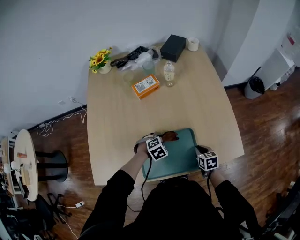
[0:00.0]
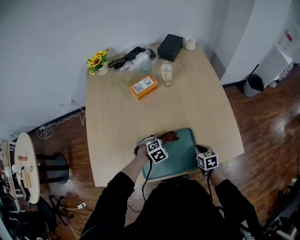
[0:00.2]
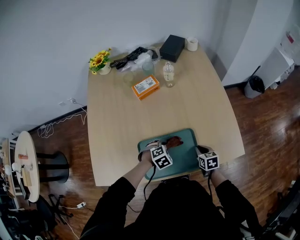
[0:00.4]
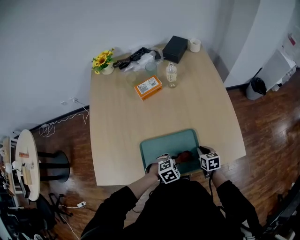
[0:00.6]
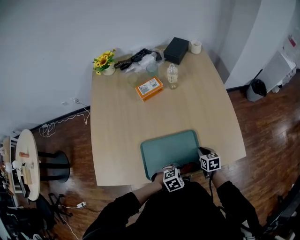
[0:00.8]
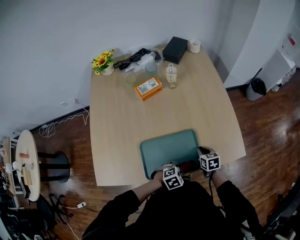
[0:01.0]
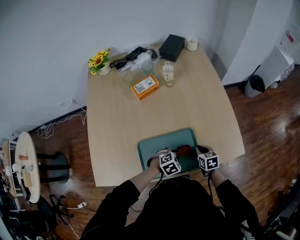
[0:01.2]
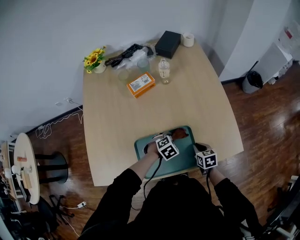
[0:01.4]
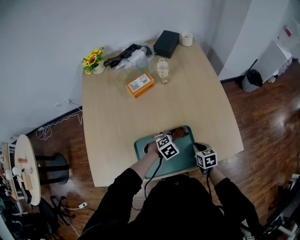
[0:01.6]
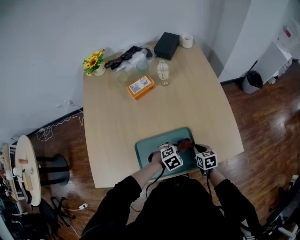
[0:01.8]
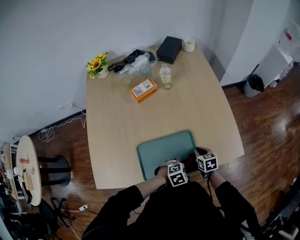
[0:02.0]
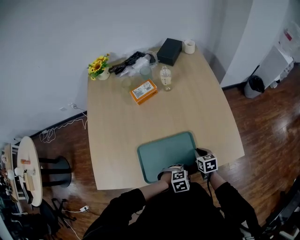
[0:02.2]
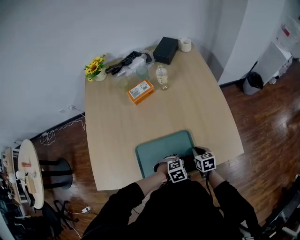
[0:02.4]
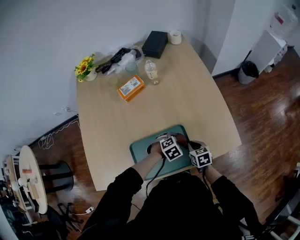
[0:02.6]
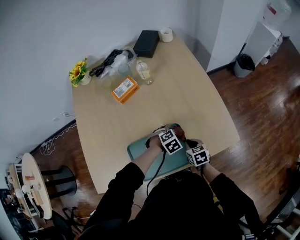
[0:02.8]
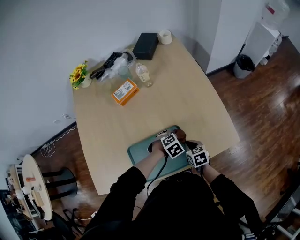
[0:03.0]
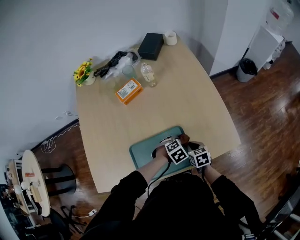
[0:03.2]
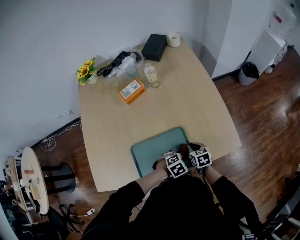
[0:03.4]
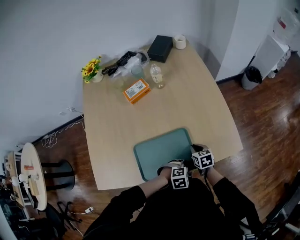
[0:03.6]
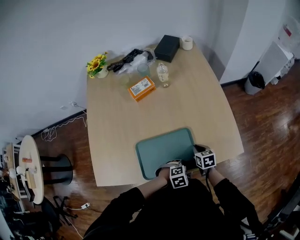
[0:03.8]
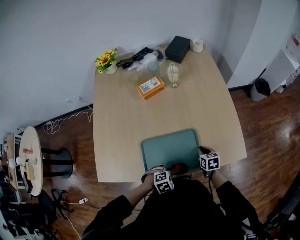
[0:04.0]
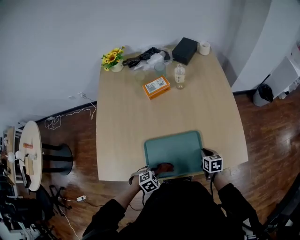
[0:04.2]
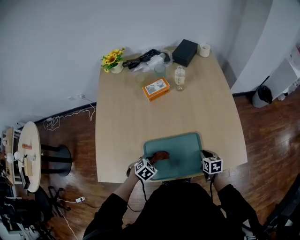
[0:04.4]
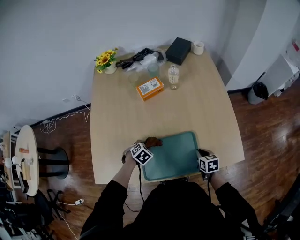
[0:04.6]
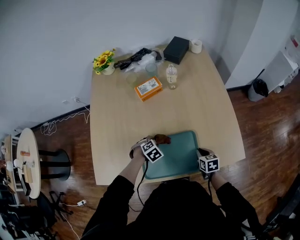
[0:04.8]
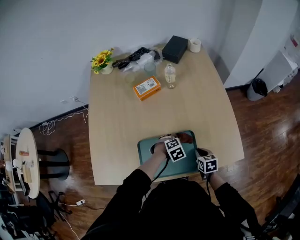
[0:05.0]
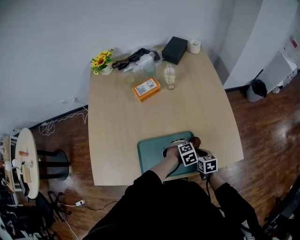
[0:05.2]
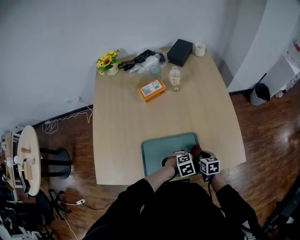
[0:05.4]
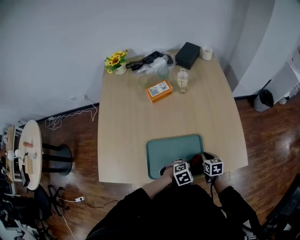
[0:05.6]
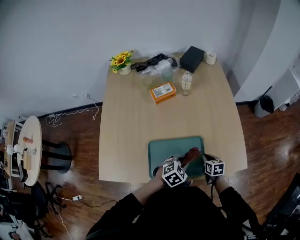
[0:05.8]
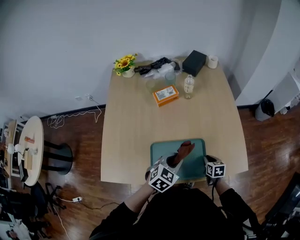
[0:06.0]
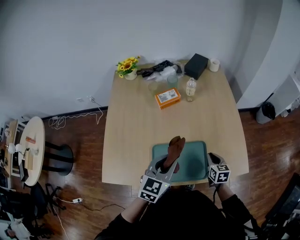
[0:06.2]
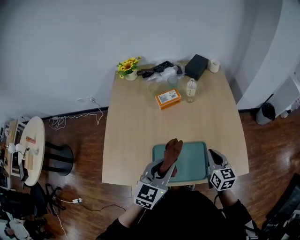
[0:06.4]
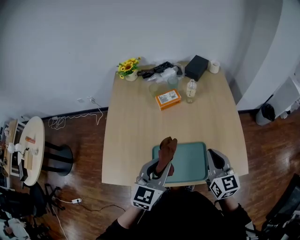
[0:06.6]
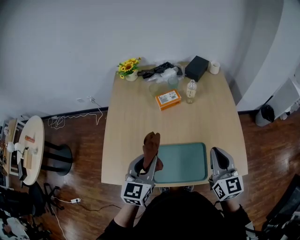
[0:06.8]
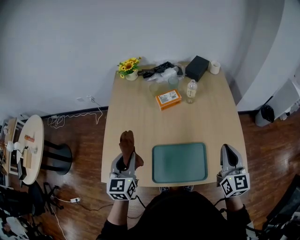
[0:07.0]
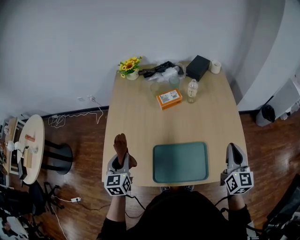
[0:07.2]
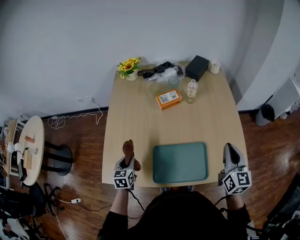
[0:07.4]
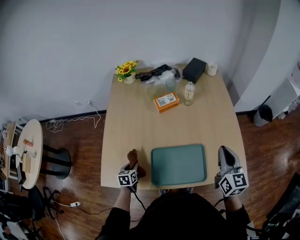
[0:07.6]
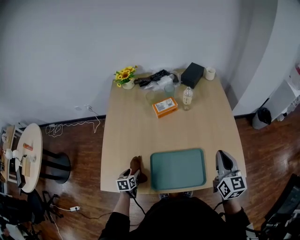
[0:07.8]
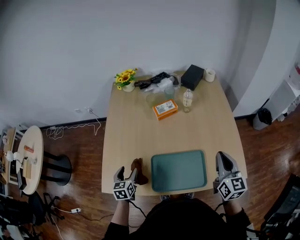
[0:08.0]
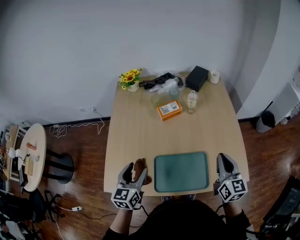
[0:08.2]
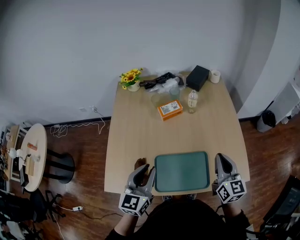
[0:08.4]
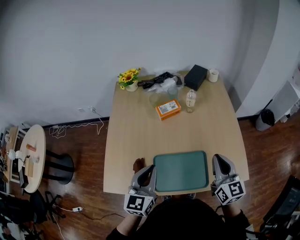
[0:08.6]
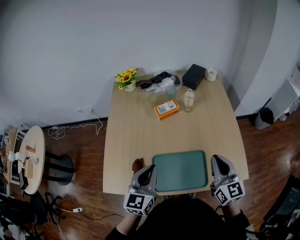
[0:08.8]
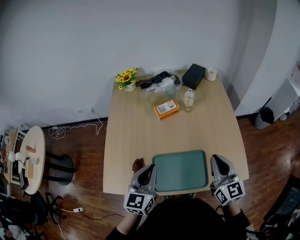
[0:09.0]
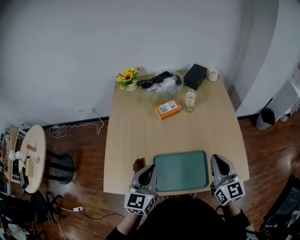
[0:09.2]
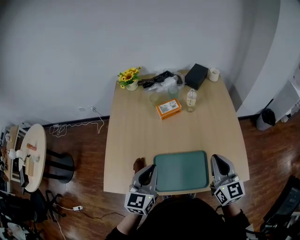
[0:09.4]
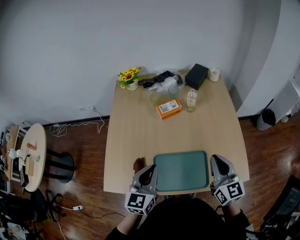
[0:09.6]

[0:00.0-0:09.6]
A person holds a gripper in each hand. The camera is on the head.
0:00.0 to 0:01.6: The left gripper heads to the right, covering approximately 5 cm, and goes backward and returns, approximately 15 cm each way.
0:01.6 to 0:03.2: The left gripper goes forward and backward, some 20 cm each way, reversing 2 times.
0:03.2 to 0:04.8: The left gripper ends up about 20 cm from where it was.
0:04.8 to 0:06.4: Both grippers travel together upward, some 25 cm. The left gripper tips its fingers upward by approximately 50 degrees, while the right gripper turns by some 30 degrees.
0:06.4 to 0:08.0: The right gripper travels upward by some 10 cm; the left gripper shifts approximately 30 cm to the left and downward, changes its angle by roughly 40 degrees, and opens its fingers.
0:08.0 to 0:09.6: The left gripper is displaced upward and to the right by some 25 cm, turns by approximately 30 degrees, and closes its fingers. The right gripper shifts by roughly 5 cm.

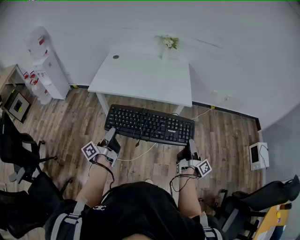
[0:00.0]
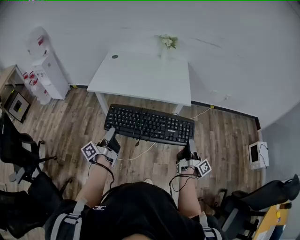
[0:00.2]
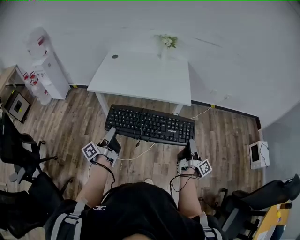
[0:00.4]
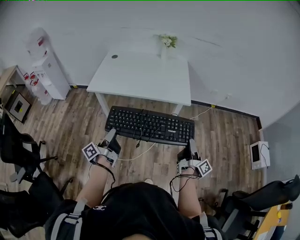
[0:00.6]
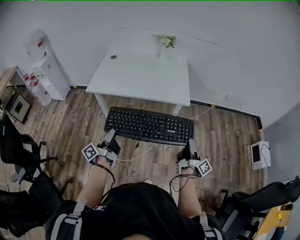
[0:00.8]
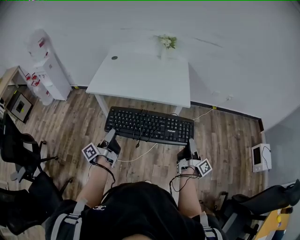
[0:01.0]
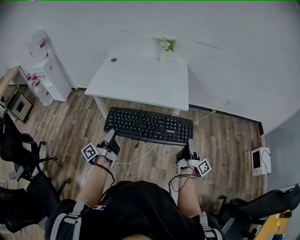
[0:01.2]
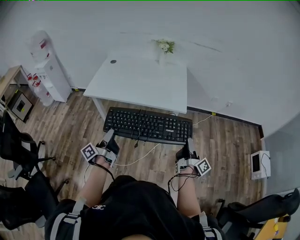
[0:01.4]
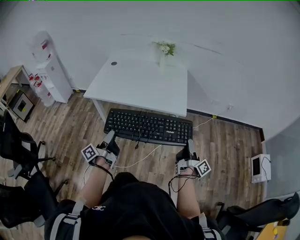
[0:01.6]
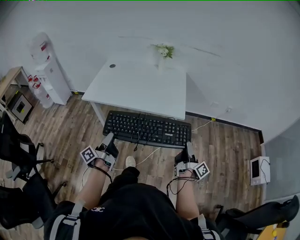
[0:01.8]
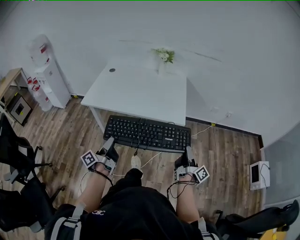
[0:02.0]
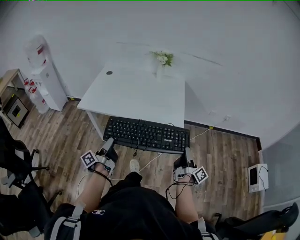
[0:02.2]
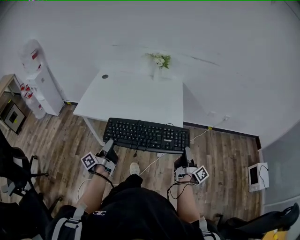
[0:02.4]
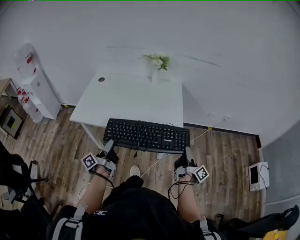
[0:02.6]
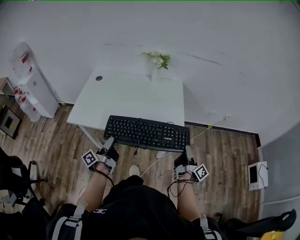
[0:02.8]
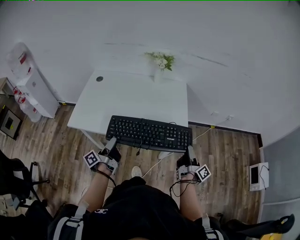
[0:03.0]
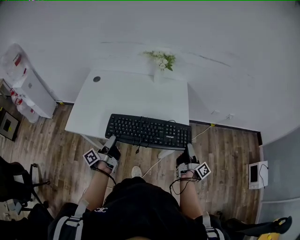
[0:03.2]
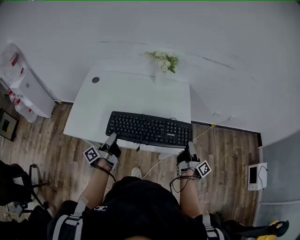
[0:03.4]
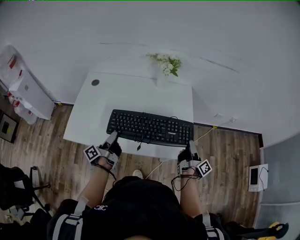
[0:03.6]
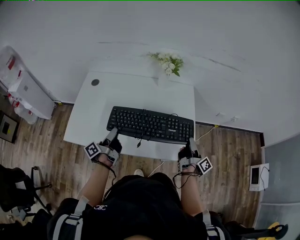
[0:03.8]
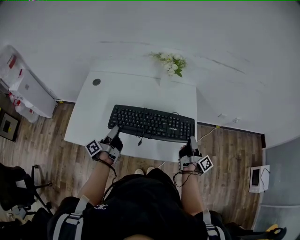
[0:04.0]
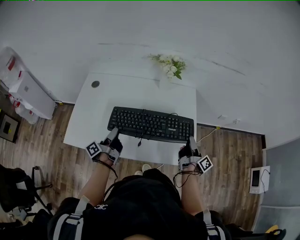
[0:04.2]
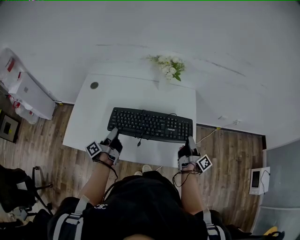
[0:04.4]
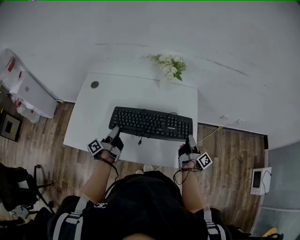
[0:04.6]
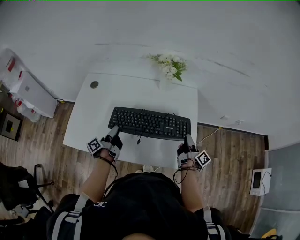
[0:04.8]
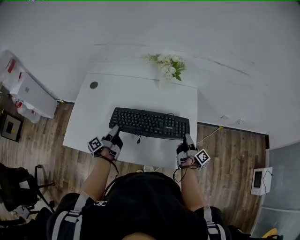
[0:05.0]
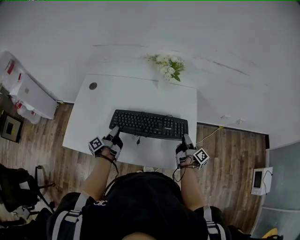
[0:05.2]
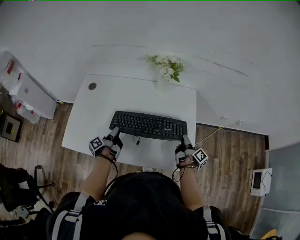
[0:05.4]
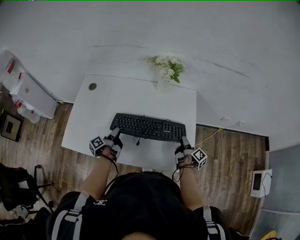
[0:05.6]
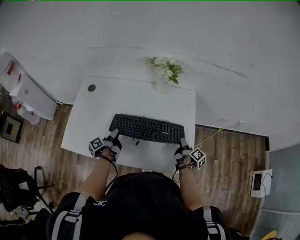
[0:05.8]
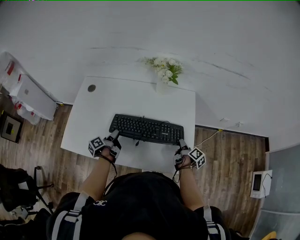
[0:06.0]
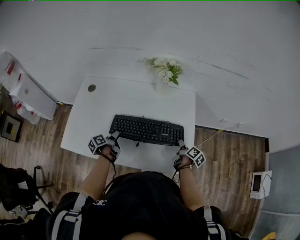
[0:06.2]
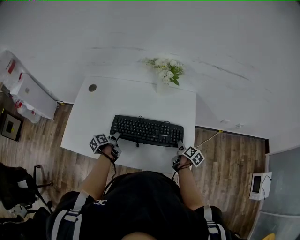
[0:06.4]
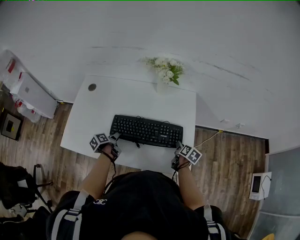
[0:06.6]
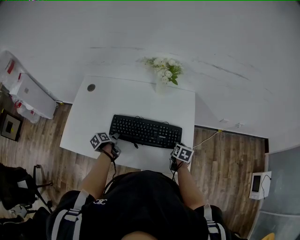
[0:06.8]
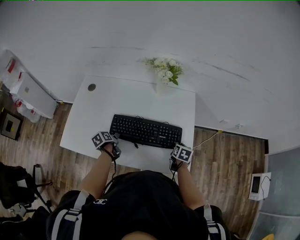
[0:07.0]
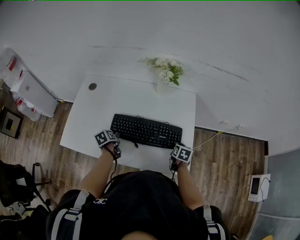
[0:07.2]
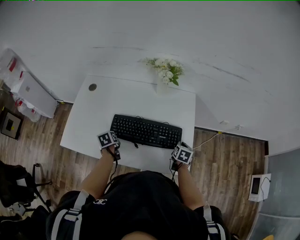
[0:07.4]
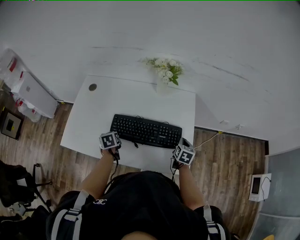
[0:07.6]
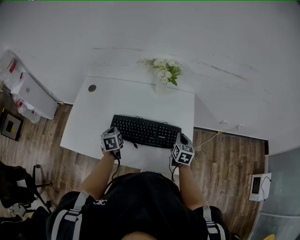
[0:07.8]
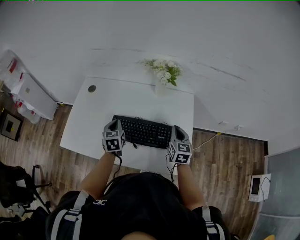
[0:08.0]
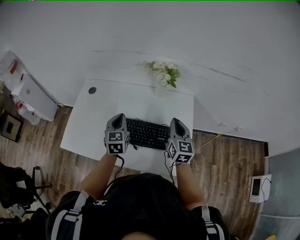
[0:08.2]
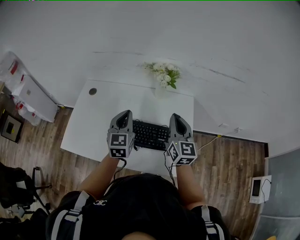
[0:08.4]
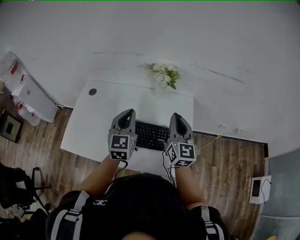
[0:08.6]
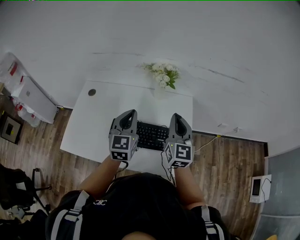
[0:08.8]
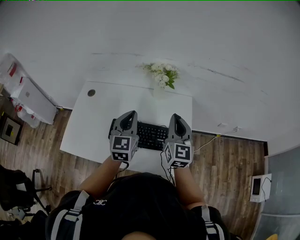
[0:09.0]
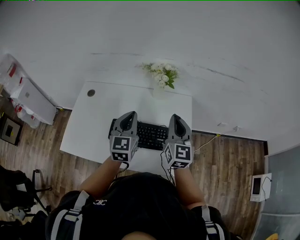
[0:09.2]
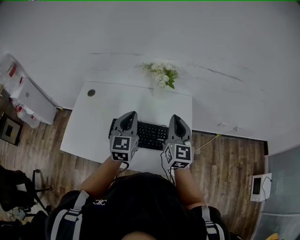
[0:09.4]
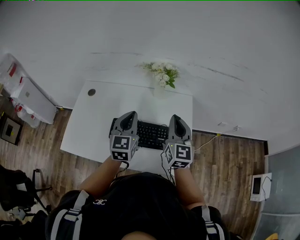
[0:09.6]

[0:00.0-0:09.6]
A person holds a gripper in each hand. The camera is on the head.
0:00.0 to 0:01.6: The right gripper changes place by approximately 10 cm.
0:01.6 to 0:03.2: The right gripper changes place by about 30 cm.
0:03.2 to 0:04.8: The right gripper shifts by about 25 cm.
0:04.8 to 0:06.4: The right gripper heads downward, covering about 10 cm, and points its fingers some 40 degrees further downward.
0:06.4 to 0:08.0: The right gripper goes about 15 cm upward, twists some 50 degrees counterclockwise, seen from behind, and closes up.
0:08.0 to 0:09.6: The right gripper shifts approximately 15 cm upward, and turns by roughly 20 degrees.

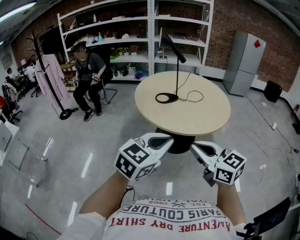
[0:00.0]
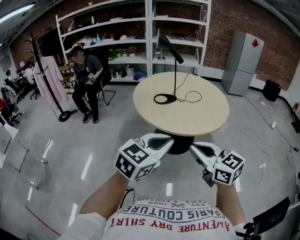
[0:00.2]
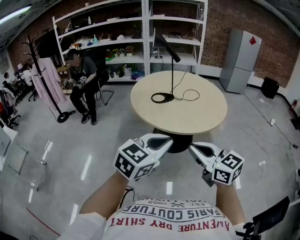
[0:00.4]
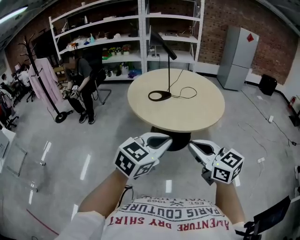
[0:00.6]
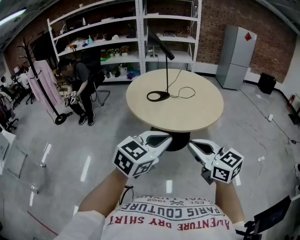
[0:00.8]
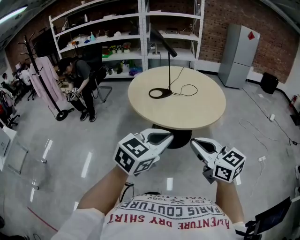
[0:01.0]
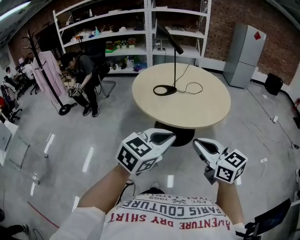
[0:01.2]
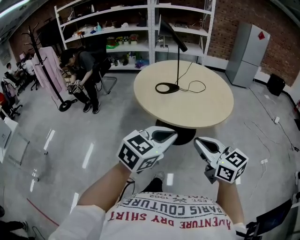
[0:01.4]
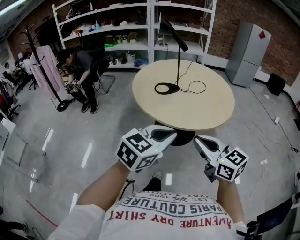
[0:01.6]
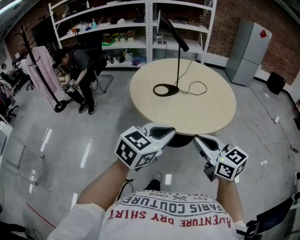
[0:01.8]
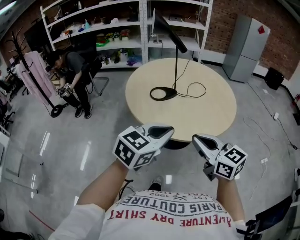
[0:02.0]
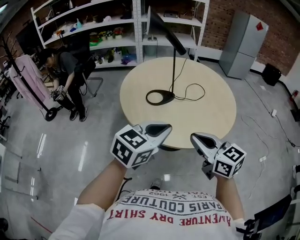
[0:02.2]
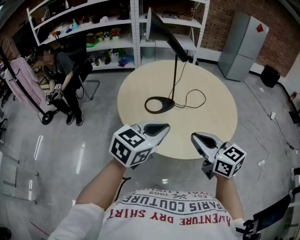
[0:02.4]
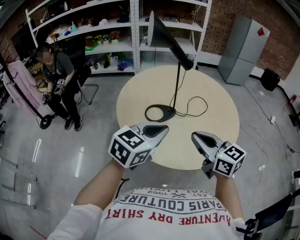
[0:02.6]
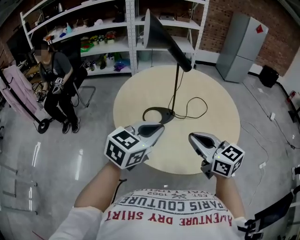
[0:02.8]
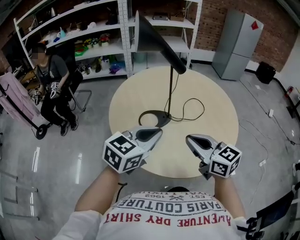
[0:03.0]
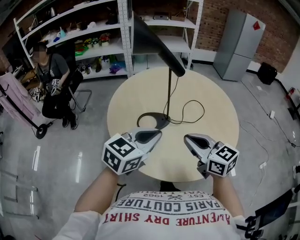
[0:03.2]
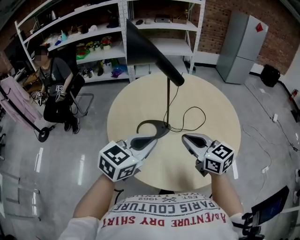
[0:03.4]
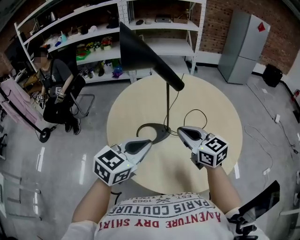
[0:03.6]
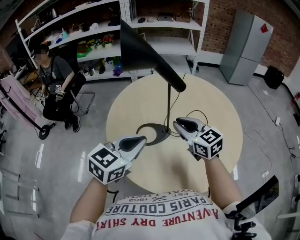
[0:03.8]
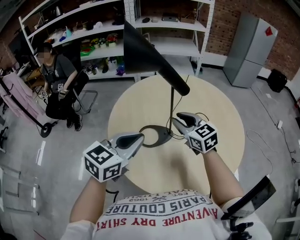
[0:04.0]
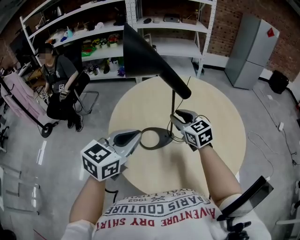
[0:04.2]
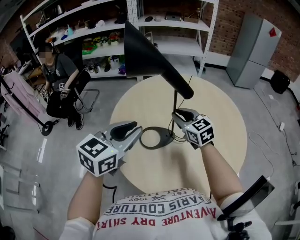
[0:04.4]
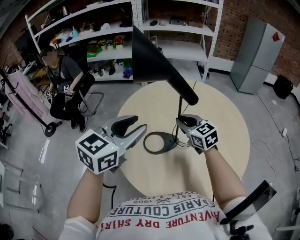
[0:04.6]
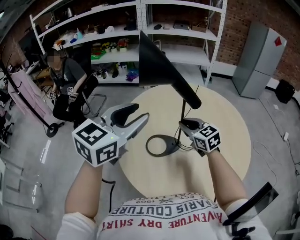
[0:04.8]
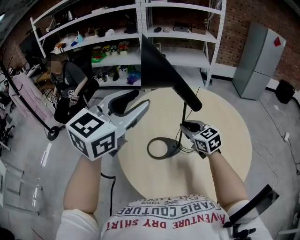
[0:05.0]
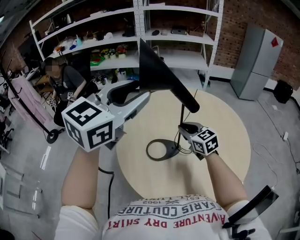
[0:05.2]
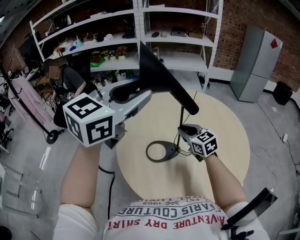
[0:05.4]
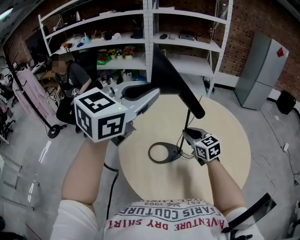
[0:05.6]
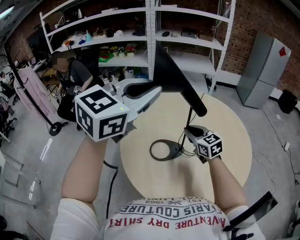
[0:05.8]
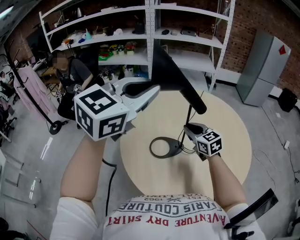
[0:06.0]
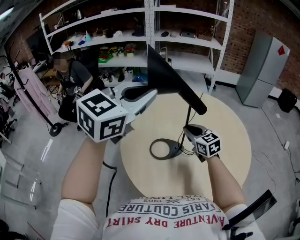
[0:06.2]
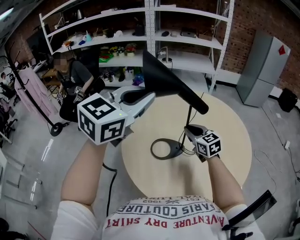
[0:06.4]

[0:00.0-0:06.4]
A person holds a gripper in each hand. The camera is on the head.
0:00.0 to 0:01.6: Both grippers move forward, roughly 5 cm.
0:01.6 to 0:03.2: Both grippers travel together forward, roughly 35 cm.
0:03.2 to 0:04.8: The left gripper is displaced forward, upward and to the left by about 20 cm, and opens. The right gripper moves forward, approximately 25 cm.
0:04.8 to 0:06.4: The left gripper heads upward, covering approximately 5 cm, and closes.
